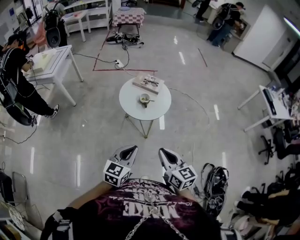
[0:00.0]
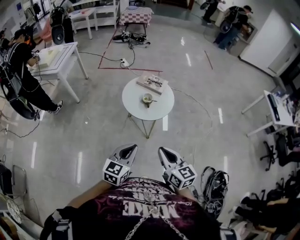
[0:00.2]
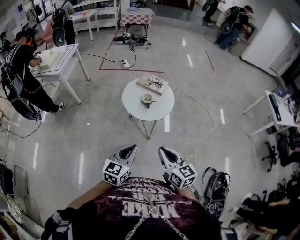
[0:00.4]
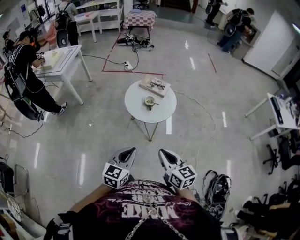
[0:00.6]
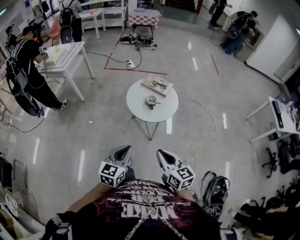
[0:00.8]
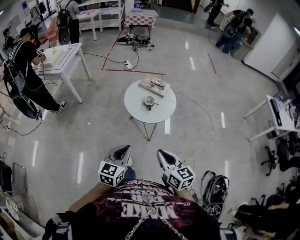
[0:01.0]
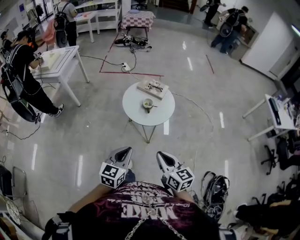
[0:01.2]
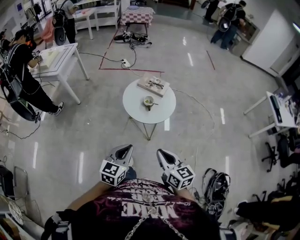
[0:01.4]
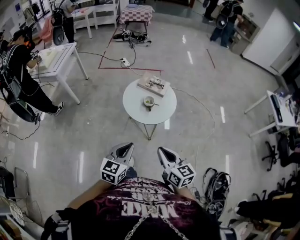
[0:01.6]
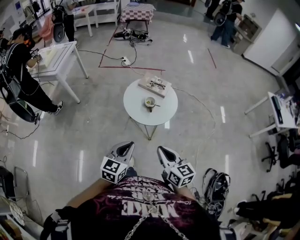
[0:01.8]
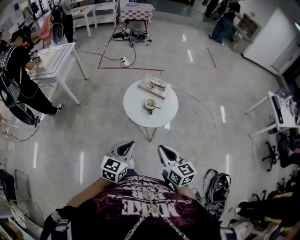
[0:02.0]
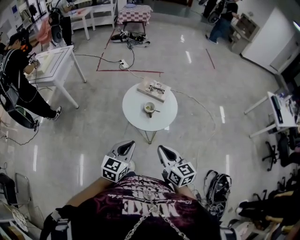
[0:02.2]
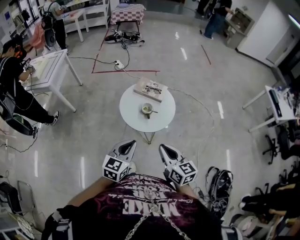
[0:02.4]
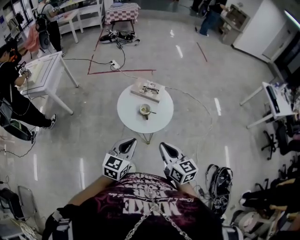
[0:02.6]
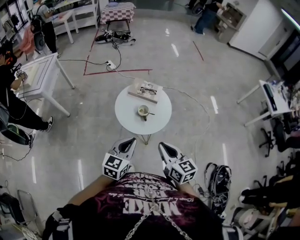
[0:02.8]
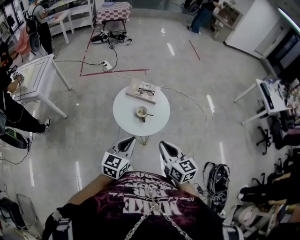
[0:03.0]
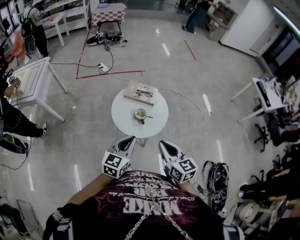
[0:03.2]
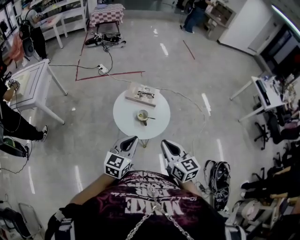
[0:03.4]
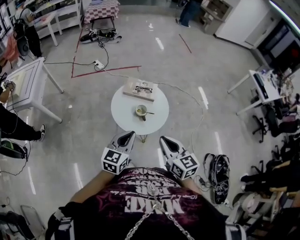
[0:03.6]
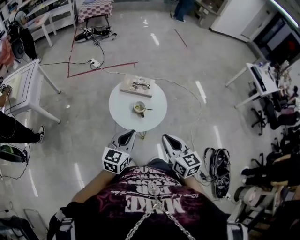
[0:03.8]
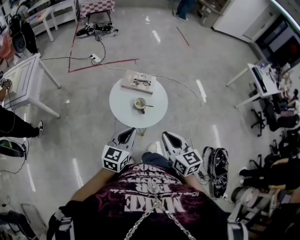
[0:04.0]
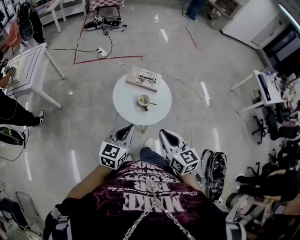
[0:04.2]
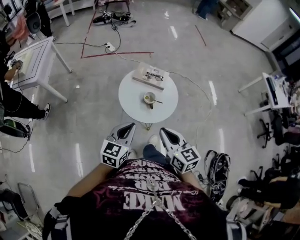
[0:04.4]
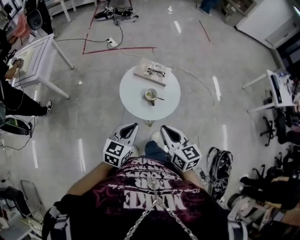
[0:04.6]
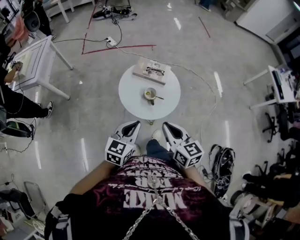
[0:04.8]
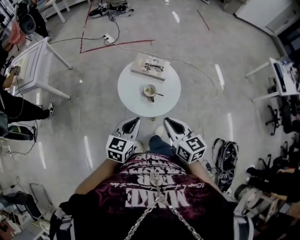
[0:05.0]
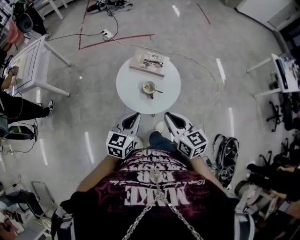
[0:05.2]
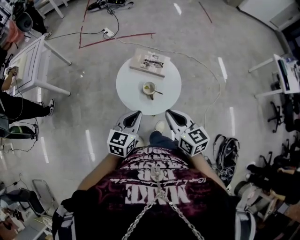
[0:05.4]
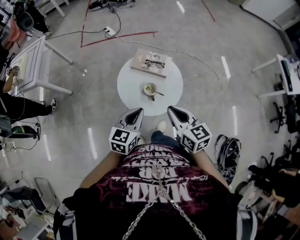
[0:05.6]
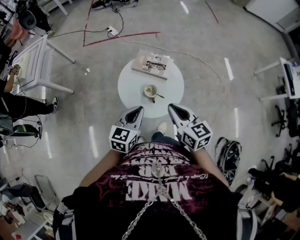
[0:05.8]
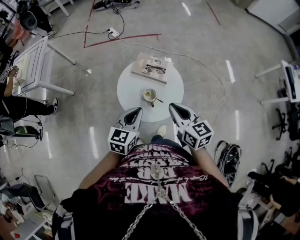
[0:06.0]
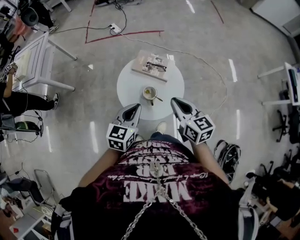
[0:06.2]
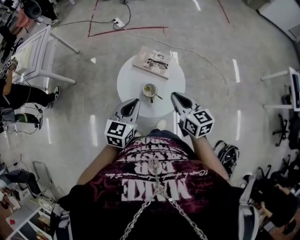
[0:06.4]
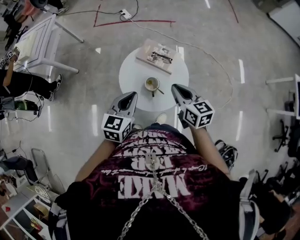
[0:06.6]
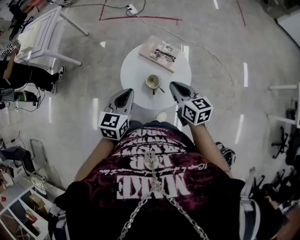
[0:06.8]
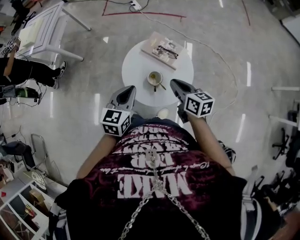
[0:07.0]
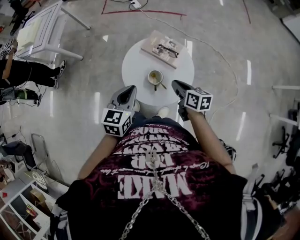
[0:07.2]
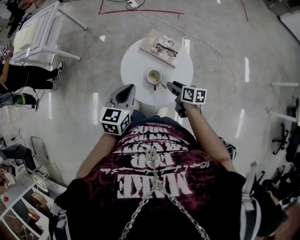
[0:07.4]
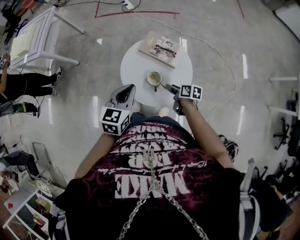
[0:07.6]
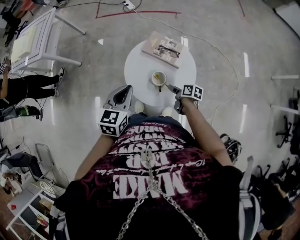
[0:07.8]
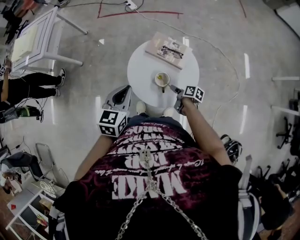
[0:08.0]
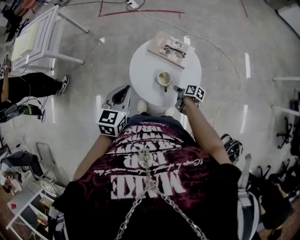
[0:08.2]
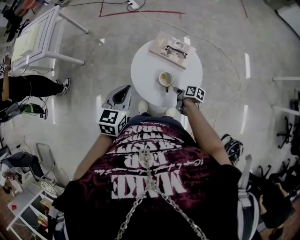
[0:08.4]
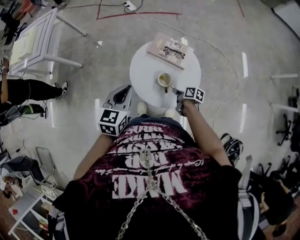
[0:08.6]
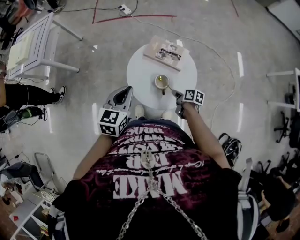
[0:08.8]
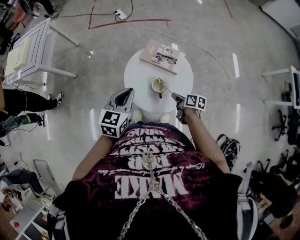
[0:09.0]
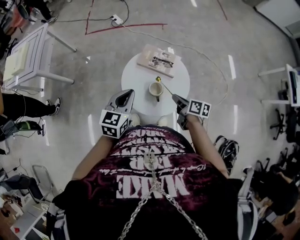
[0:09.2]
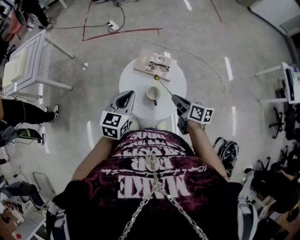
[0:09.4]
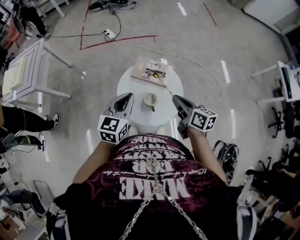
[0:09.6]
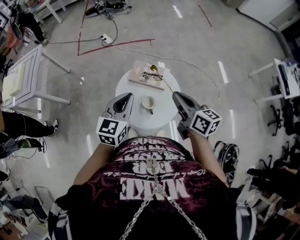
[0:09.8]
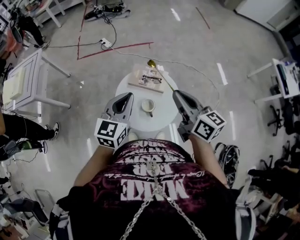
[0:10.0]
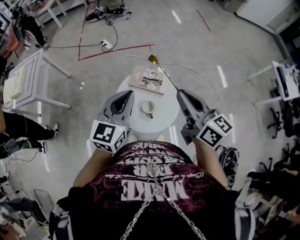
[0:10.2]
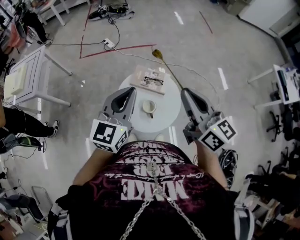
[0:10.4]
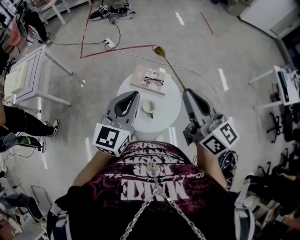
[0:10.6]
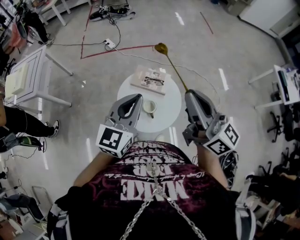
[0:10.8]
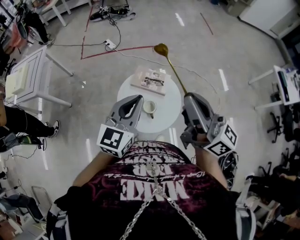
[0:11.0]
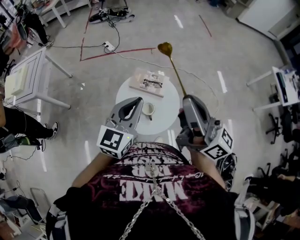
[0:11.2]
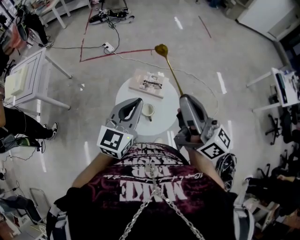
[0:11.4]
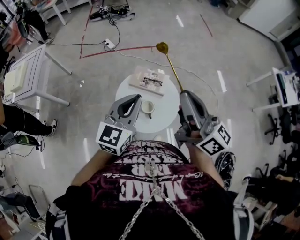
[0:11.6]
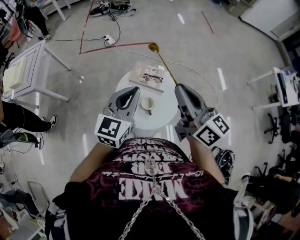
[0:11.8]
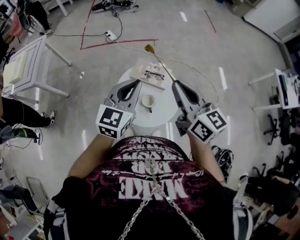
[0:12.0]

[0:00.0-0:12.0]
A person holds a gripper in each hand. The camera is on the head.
0:00.0 to 0:01.6: Both grippers travel together forward, roughly 5 cm.
0:01.6 to 0:03.0: Both grippers move forward, roughly 15 cm.
0:03.0 to 0:04.4: The grippers both shift to the left by about 5 cm.
0:04.4 to 0:06.0: Both grippers move forward and to the right, some 15 cm.
0:06.0 to 0:07.6: The right gripper goes roughly 30 cm downward, swivels some 50 degrees, and opens its fingers; the left gripper goes about 5 cm forward.
0:07.6 to 0:09.0: The left gripper changes place by about 5 cm; the right gripper goes downward and returns, approximately 5 cm each way, and closes its fingers.
0:09.0 to 0:10.4: The right gripper is displaced upward by about 40 cm, and tips its fingers upward by approximately 40 degrees; the left gripper goes roughly 20 cm upward, and changes its angle by roughly 30 degrees.
0:10.4 to 0:12.0: The right gripper reaches some 5 cm upward, then returns.

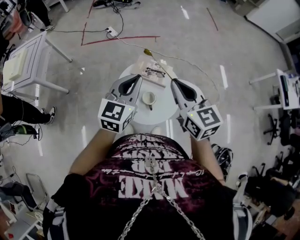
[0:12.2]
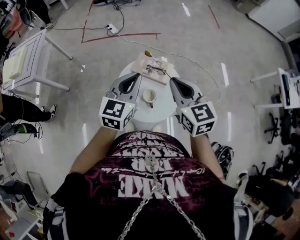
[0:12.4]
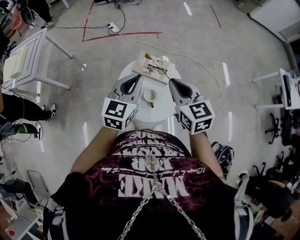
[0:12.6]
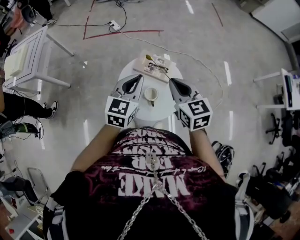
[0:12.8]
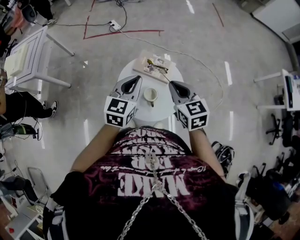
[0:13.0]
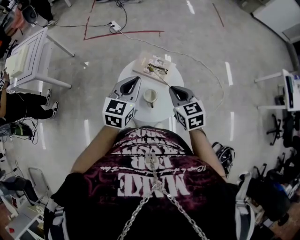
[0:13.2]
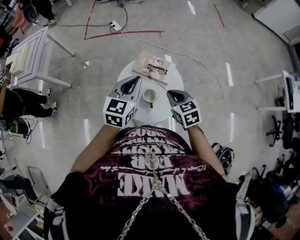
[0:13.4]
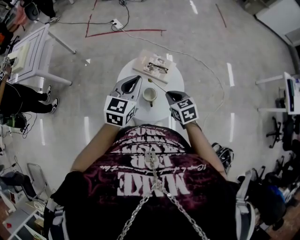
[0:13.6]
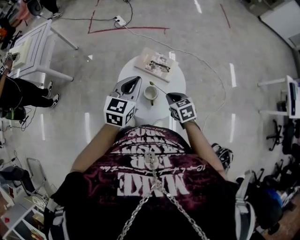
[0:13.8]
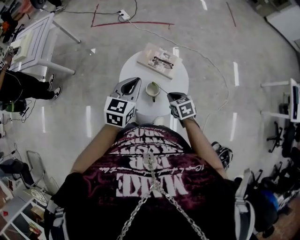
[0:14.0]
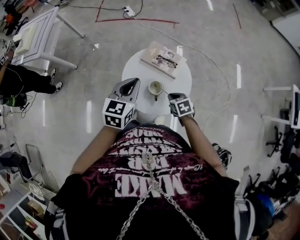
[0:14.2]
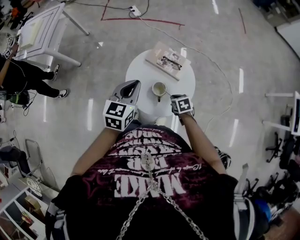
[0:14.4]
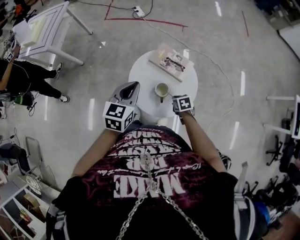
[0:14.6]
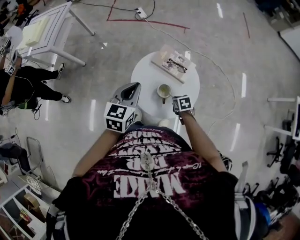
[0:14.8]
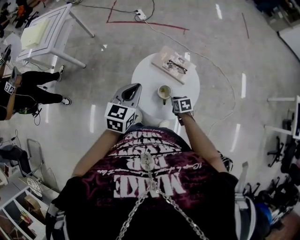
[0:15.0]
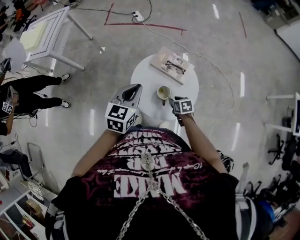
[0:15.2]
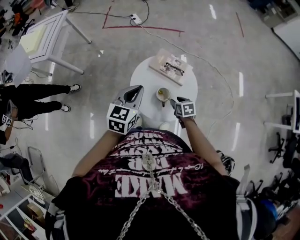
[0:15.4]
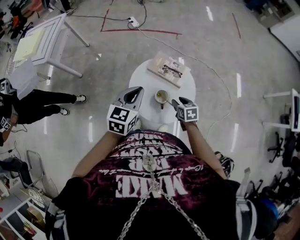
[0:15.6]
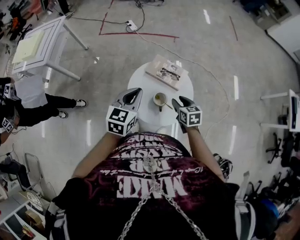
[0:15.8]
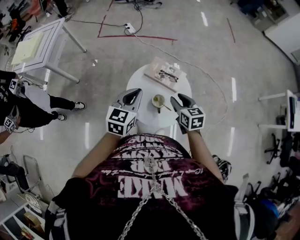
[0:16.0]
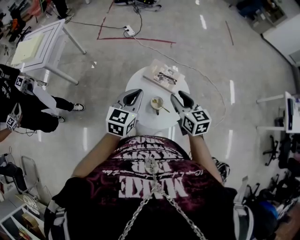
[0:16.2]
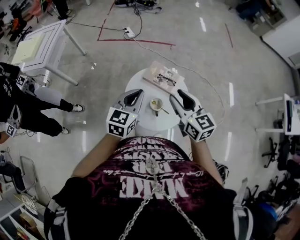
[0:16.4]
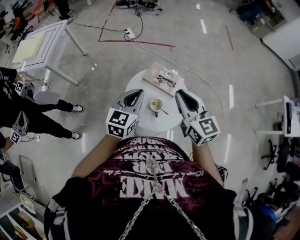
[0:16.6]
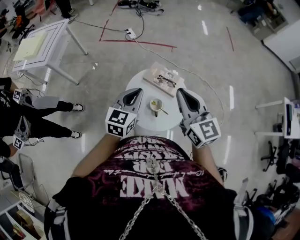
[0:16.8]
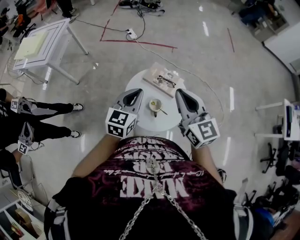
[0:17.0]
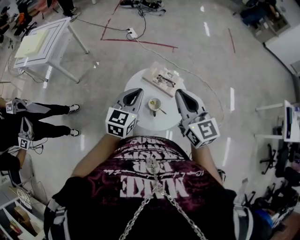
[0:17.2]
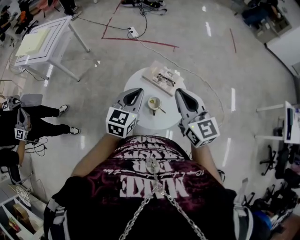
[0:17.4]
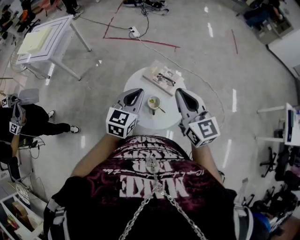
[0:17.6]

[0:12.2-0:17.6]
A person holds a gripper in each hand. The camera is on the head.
0:12.2 to 0:13.6: The right gripper shifts approximately 25 cm downward, and tilts its fingers roughly 30 degrees downward, while the left gripper travels downward by roughly 10 cm.
0:13.6 to 0:15.0: The left gripper is displaced to the left by approximately 10 cm. The right gripper shifts approximately 20 cm downward, and changes its angle by about 20 degrees.
0:15.0 to 0:16.2: The right gripper is displaced upward by about 30 cm, points its fingers roughly 40 degrees further upward, and opens.
0:16.2 to 0:17.6: The right gripper goes some 15 cm upward, turns by roughly 20 degrees, and closes its fingers.

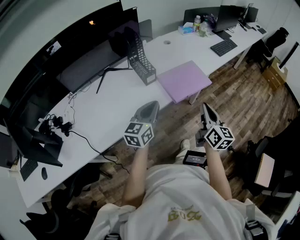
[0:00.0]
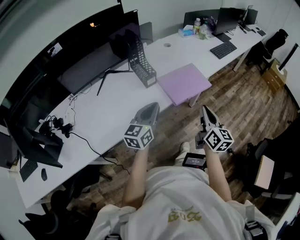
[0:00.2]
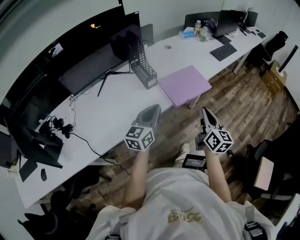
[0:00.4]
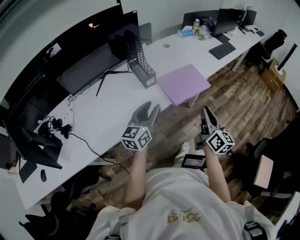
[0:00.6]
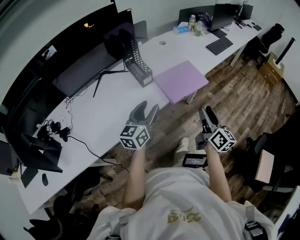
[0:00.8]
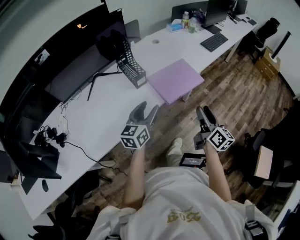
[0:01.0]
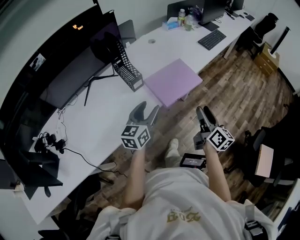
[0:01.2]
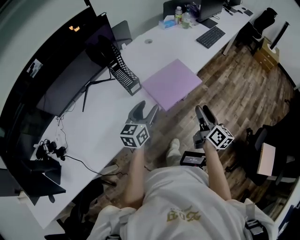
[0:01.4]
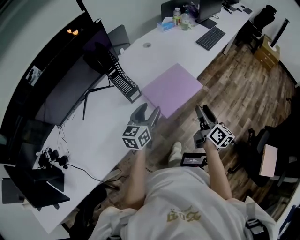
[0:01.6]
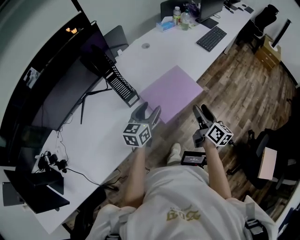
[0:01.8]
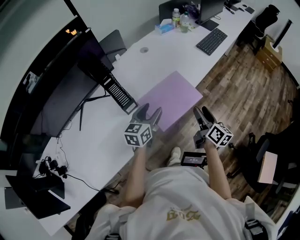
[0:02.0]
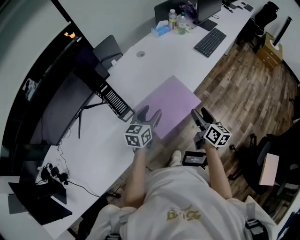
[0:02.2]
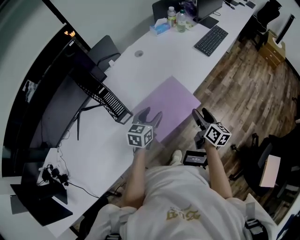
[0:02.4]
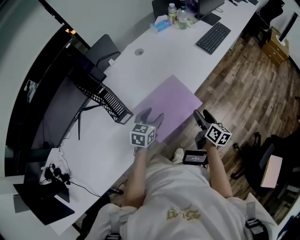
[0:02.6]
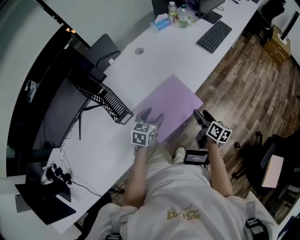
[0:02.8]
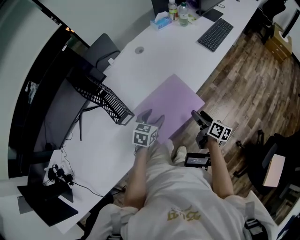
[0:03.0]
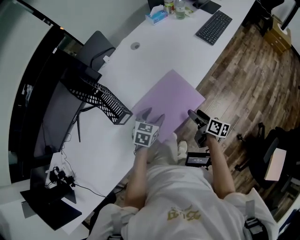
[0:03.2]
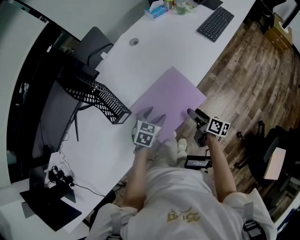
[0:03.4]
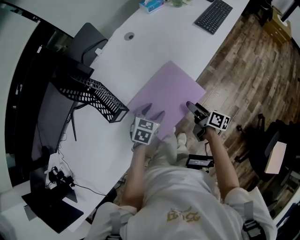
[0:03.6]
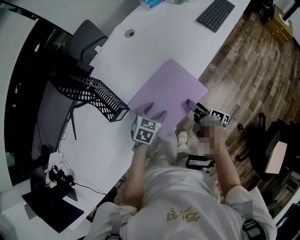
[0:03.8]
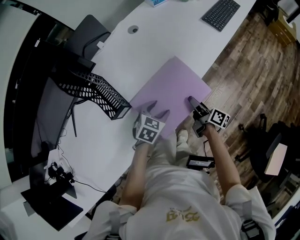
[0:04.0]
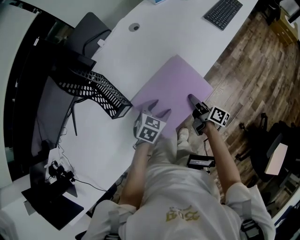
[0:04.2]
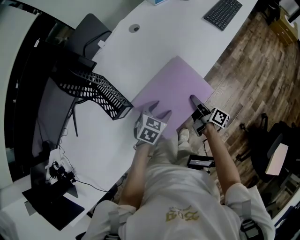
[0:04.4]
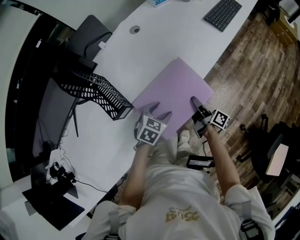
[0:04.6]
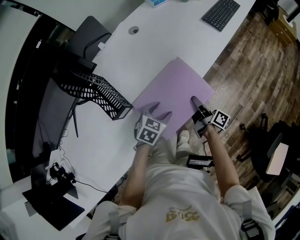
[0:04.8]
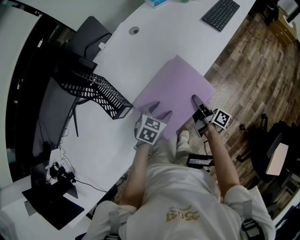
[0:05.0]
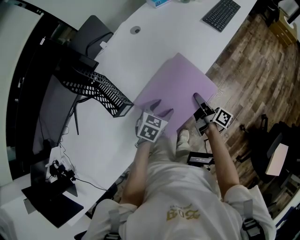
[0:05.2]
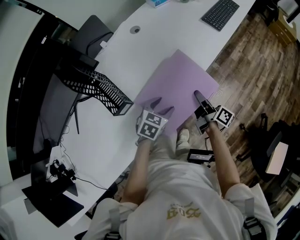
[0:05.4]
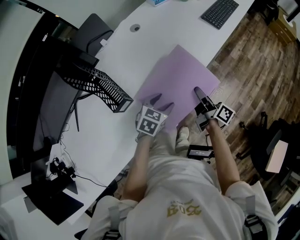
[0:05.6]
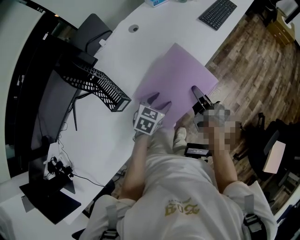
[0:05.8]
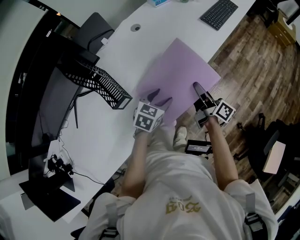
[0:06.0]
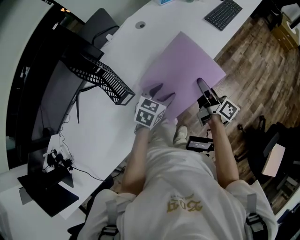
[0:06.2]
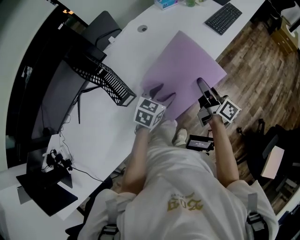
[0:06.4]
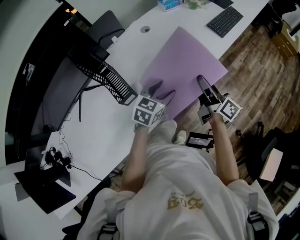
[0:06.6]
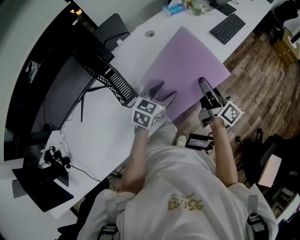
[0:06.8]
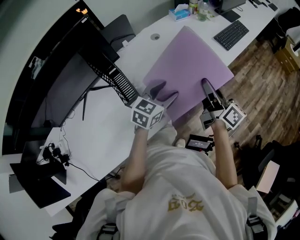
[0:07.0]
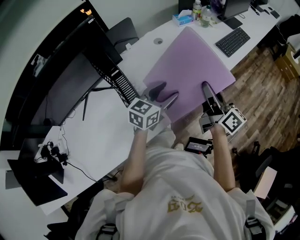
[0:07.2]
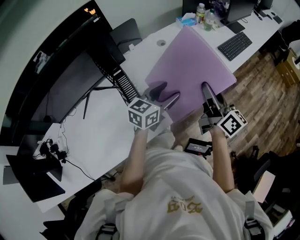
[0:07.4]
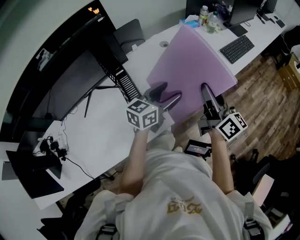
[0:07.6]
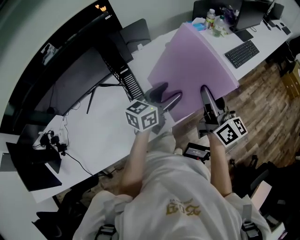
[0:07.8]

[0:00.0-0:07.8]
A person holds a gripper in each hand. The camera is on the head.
0:00.0 to 0:01.6: The right gripper shifts roughly 15 cm forward, downward and to the right, turns by about 20 degrees, and opens, while the left gripper goes approximately 15 cm forward, and opens its fingers.
0:01.6 to 0:03.2: The right gripper moves downward and forward, roughly 25 cm, and swivels about 30 degrees. The left gripper travels forward and downward by approximately 20 cm, and angles its fingers downward, by roughly 30 degrees.
0:03.2 to 0:04.6: The right gripper changes place by about 5 cm, changes its angle by about 20 degrees, and closes up.
0:04.6 to 0:06.2: The left gripper goes roughly 10 cm upward. Meanwhile the right gripper travels upward by approximately 15 cm.
0:06.2 to 0:07.8: The grippers both shift upward by about 20 cm. The right gripper changes its angle by about 30 degrees; the left gripper points its fingers about 30 degrees further upward.
